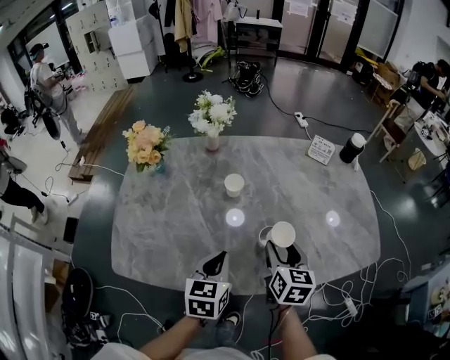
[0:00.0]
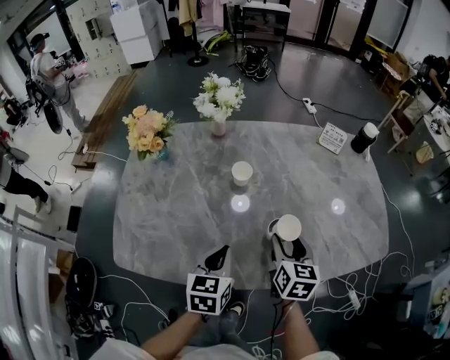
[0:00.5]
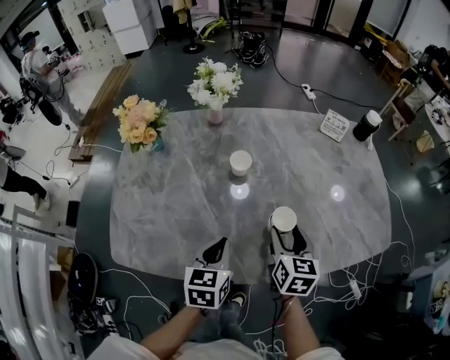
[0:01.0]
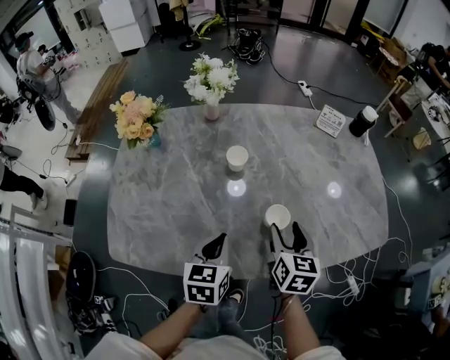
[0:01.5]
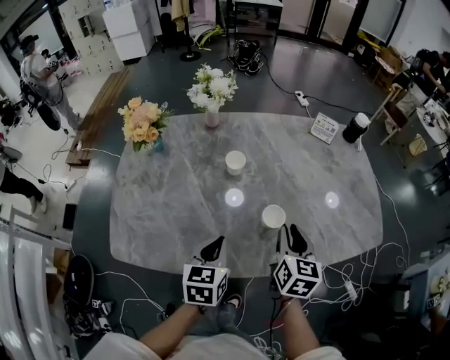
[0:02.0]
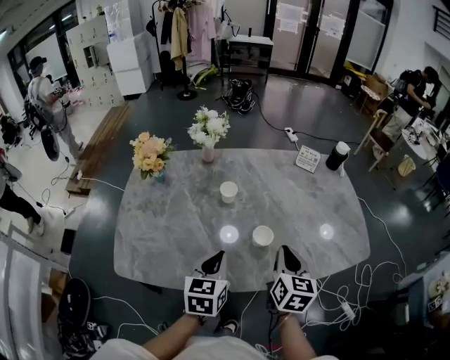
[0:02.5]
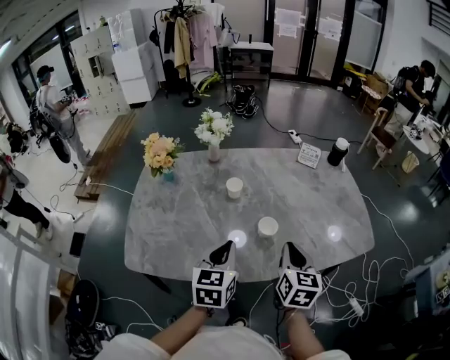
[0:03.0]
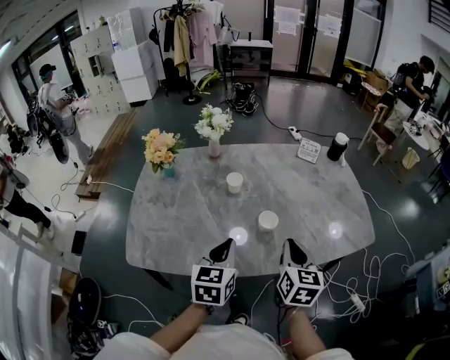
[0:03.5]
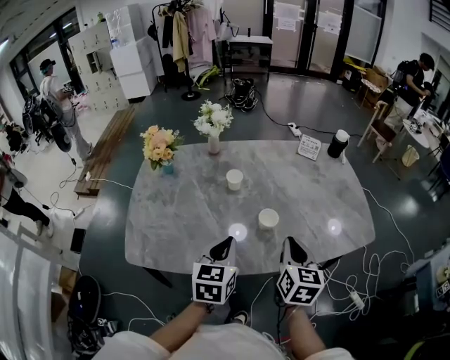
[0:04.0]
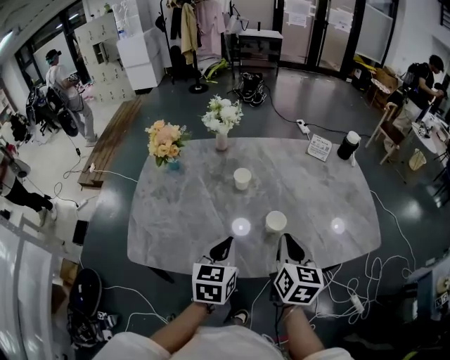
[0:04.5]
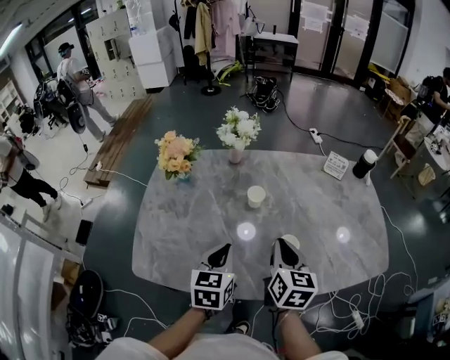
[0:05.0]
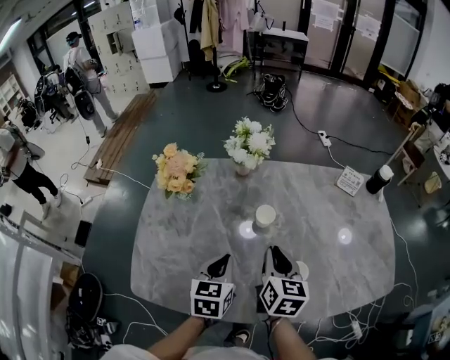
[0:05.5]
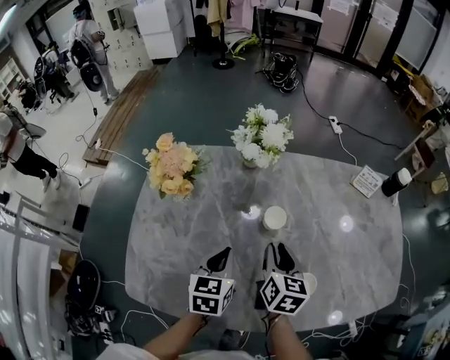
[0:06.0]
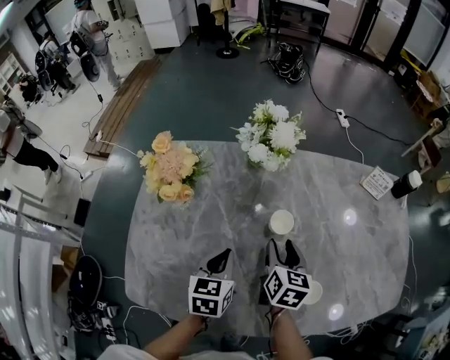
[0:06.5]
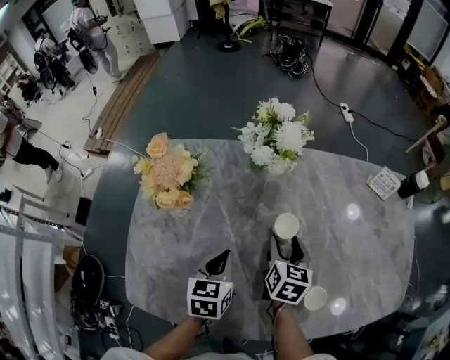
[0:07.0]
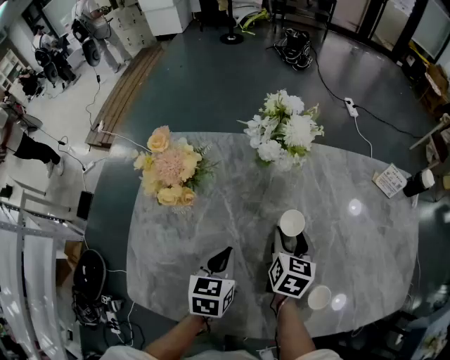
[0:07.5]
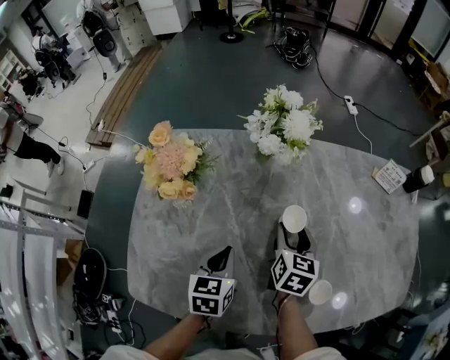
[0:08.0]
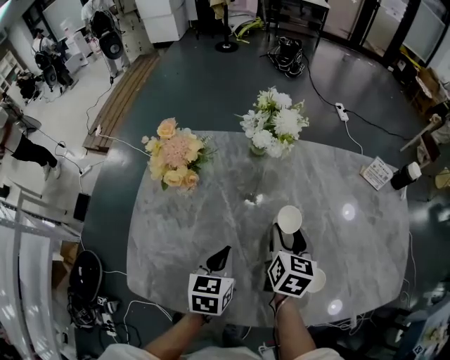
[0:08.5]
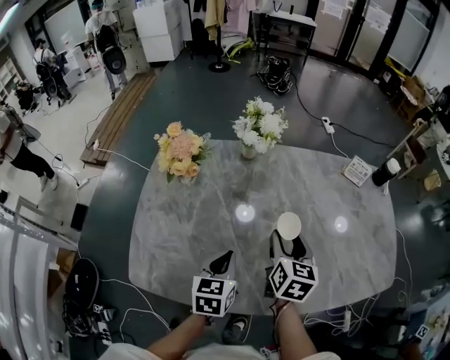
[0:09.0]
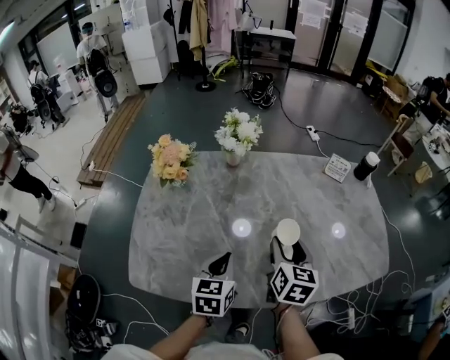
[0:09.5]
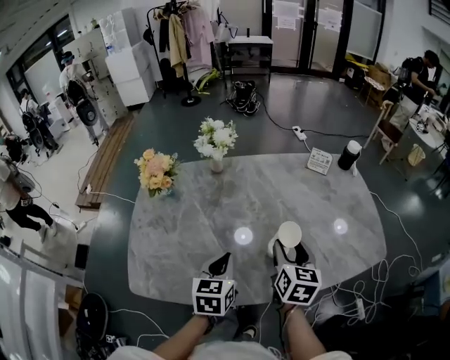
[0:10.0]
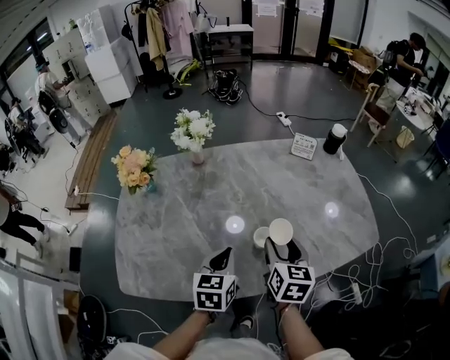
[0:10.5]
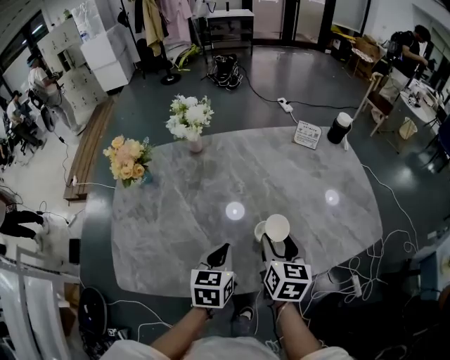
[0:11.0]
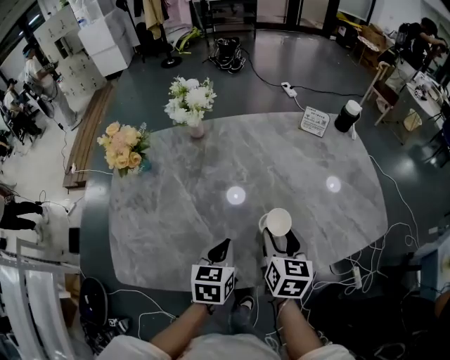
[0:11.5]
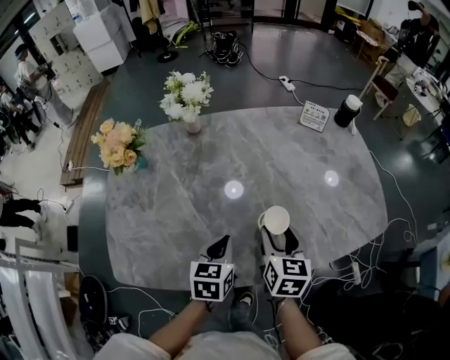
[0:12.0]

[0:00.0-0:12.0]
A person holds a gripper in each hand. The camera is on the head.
0:00.0 to 0:02.0: The right gripper closes up.
0:02.0 to 0:04.0: The left gripper heads upward, covering approximately 10 cm. The right gripper is displaced backward and upward by some 10 cm.
0:04.0 to 0:06.0: The two grippers go approximately 25 cm forward, to the left and downward.
0:06.0 to 0:08.0: The right gripper heads forward and downward, covering approximately 10 cm, and opens. The left gripper travels downward by some 5 cm.
0:08.0 to 0:10.0: The left gripper travels upward, to the right and backward by about 20 cm. The right gripper travels backward, upward and to the right by about 30 cm.
0:10.0 to 0:12.0: The two grippers go approximately 10 cm downward.

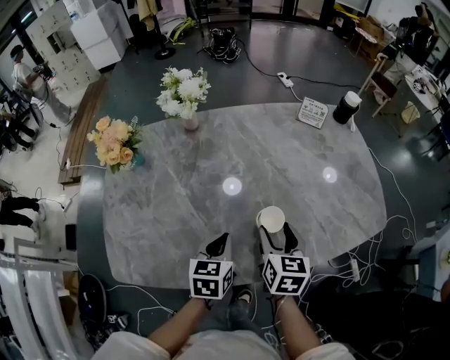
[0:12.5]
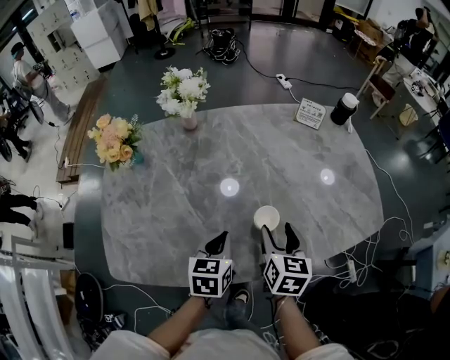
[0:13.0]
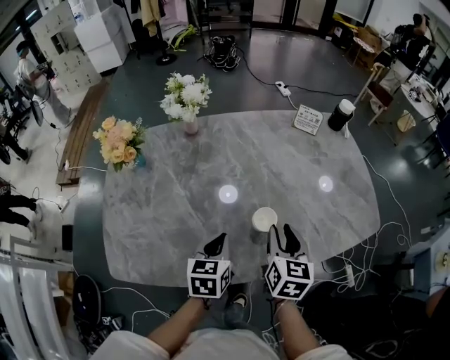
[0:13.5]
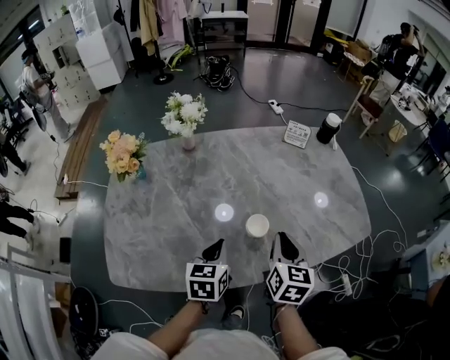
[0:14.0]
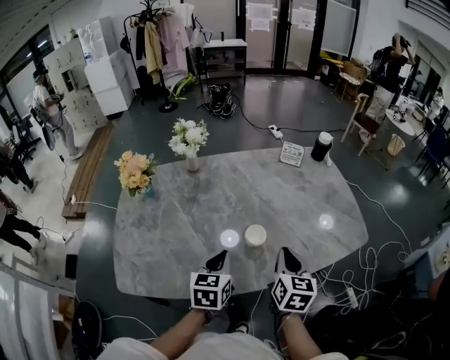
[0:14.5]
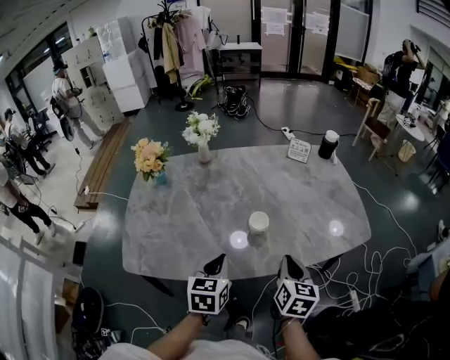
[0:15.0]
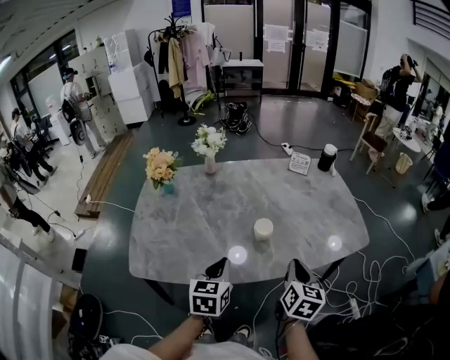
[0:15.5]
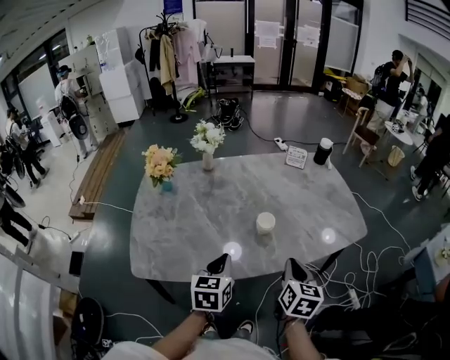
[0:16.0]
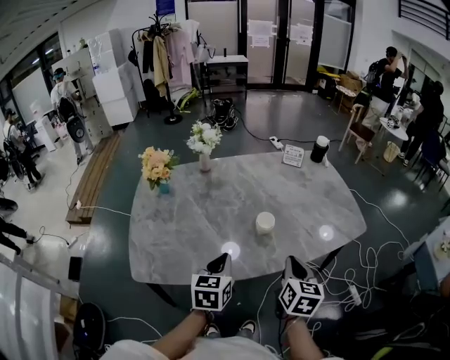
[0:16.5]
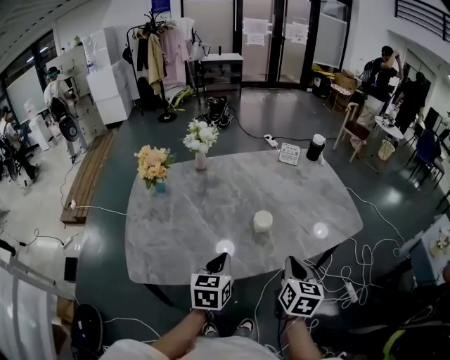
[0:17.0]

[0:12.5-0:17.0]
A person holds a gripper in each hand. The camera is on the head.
0:12.5 to 0:14.5: The right gripper is displaced upward, to the right and backward by about 10 cm, and closes its fingers. The left gripper heads upward, covering about 10 cm.
0:14.5 to 0:17.0: Both grippers move backward, roughly 10 cm.

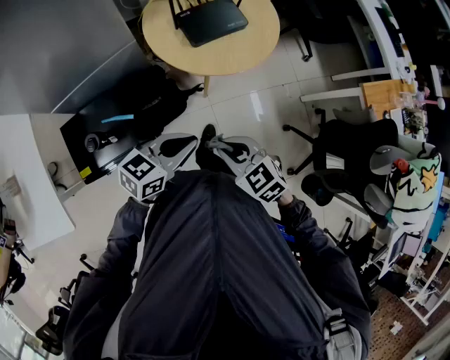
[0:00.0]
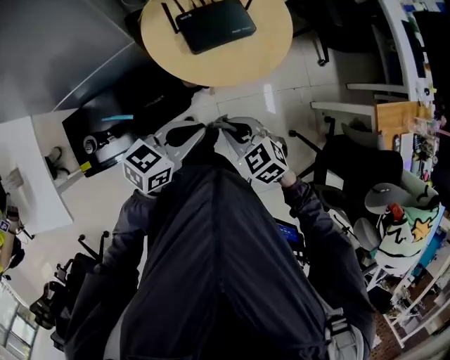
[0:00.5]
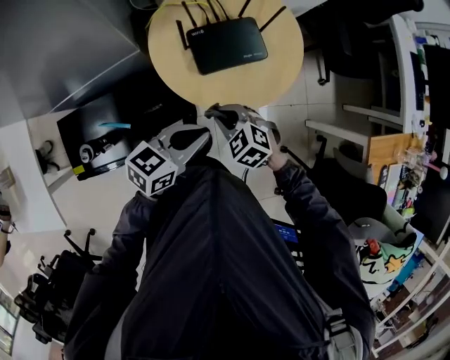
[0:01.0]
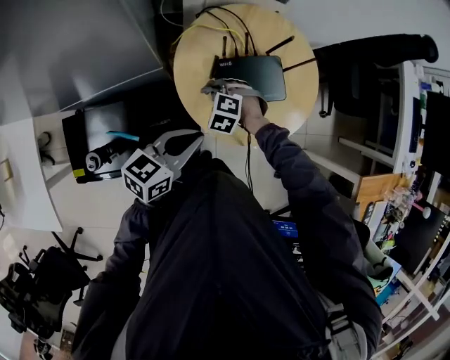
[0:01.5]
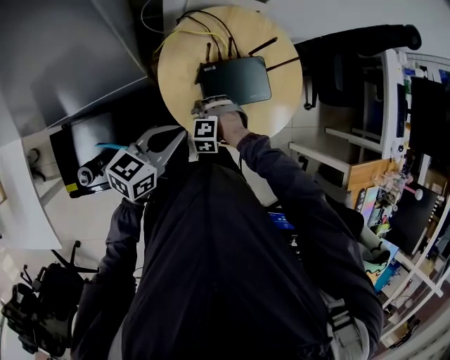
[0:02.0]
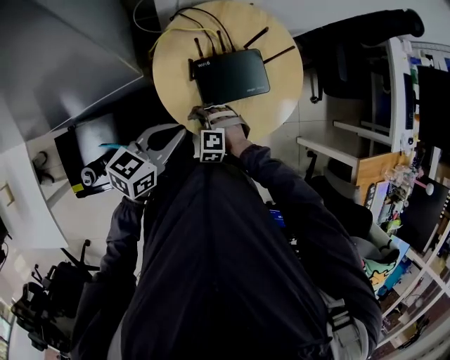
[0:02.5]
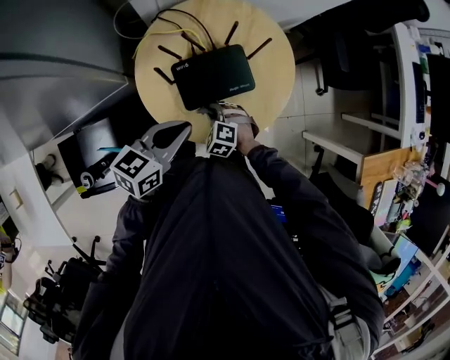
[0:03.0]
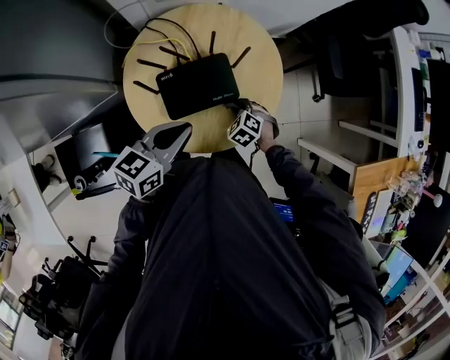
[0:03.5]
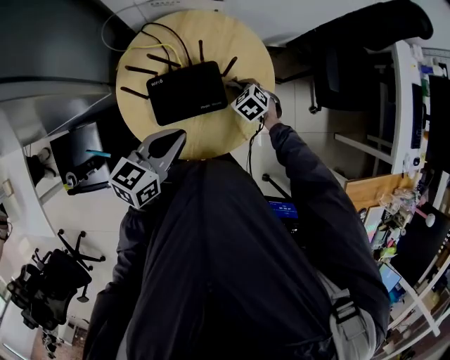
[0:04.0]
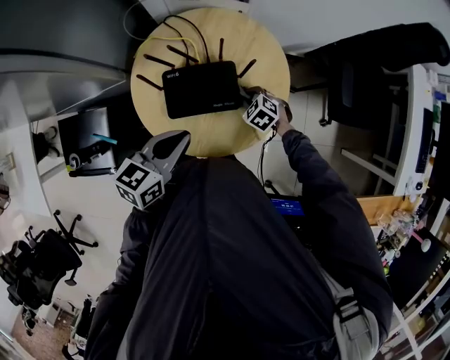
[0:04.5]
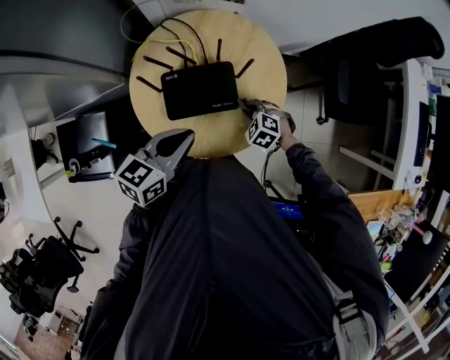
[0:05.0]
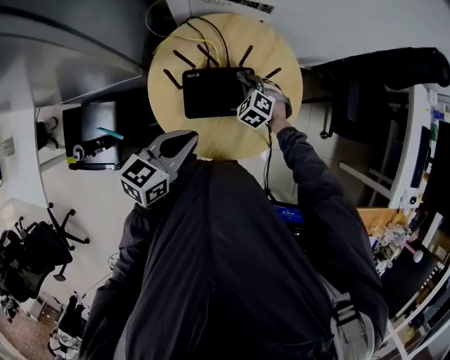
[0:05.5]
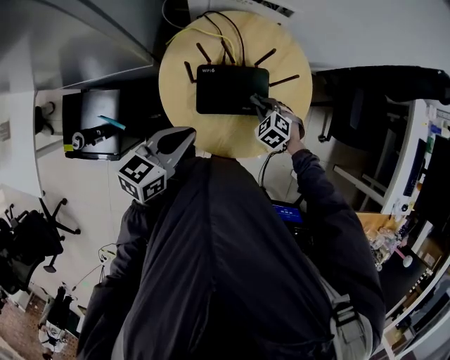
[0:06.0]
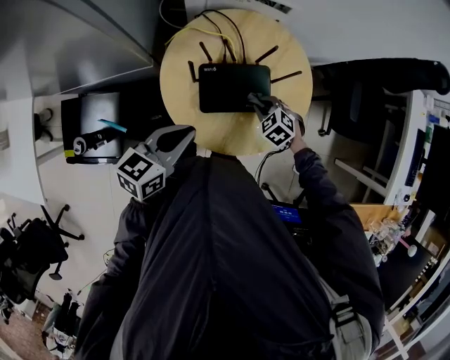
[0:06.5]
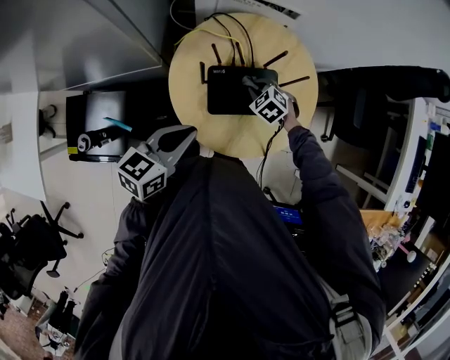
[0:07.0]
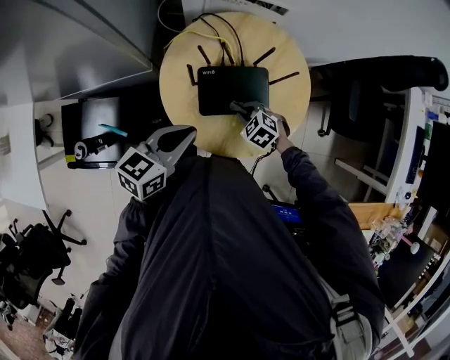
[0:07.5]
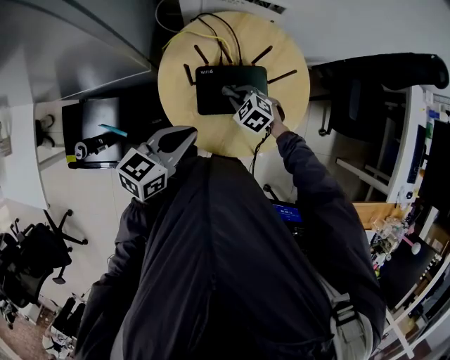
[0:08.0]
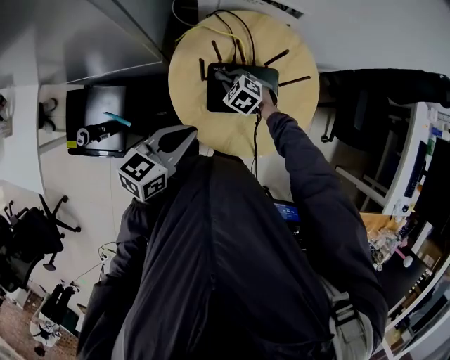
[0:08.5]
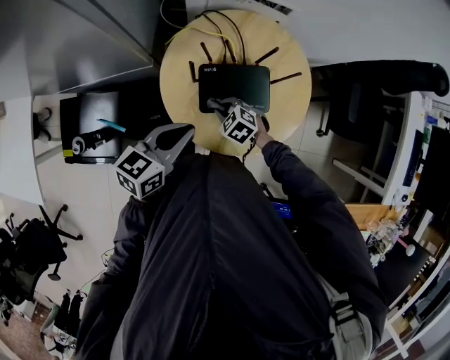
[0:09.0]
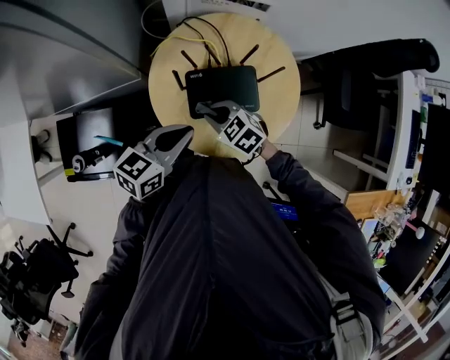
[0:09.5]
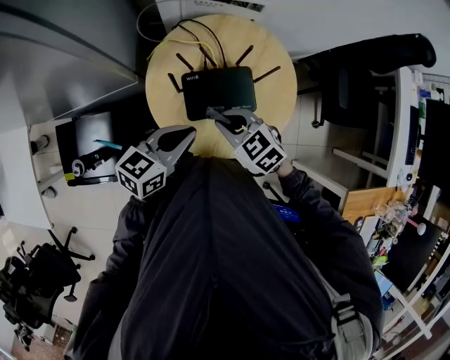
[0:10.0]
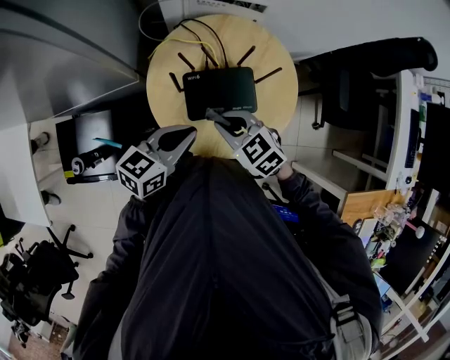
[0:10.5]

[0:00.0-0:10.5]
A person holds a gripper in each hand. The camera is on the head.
0:00.0 to 0:02.0: The right gripper changes place by about 40 cm, and rotates around the line of its fingers by roughly 60 degrees, counterclockwise from behind. The left gripper ends up about 30 cm from where it was, and swivels approximately 20 degrees.
0:02.0 to 0:04.0: The right gripper ends up about 30 cm from where it was, and rotates around the line of its fingers by roughly 50 degrees, clockwise from behind. The left gripper ends up some 20 cm from where it was.
0:04.0 to 0:06.5: The right gripper moves forward and backward over approximately 10 cm, changing direction 2 times. The left gripper goes approximately 10 cm to the left.
0:06.5 to 0:08.5: The right gripper moves to the left and forward, roughly 15 cm.
0:08.5 to 0:10.5: The right gripper heads upward and backward, covering some 20 cm, and rotates approximately 30 degrees. The left gripper changes place by approximately 5 cm.
